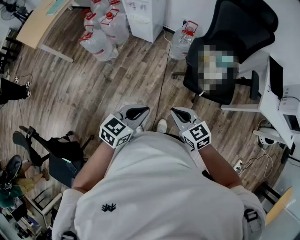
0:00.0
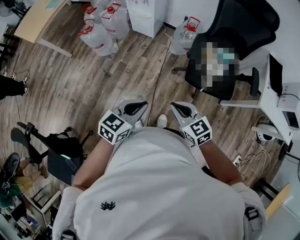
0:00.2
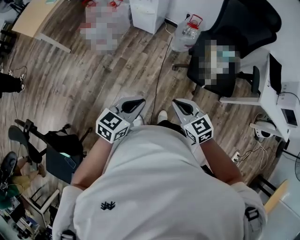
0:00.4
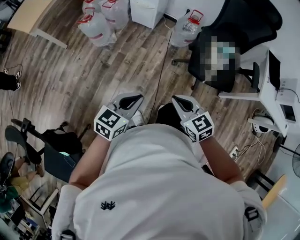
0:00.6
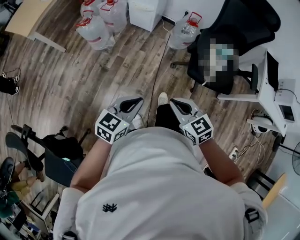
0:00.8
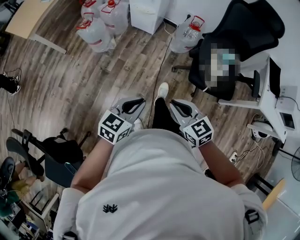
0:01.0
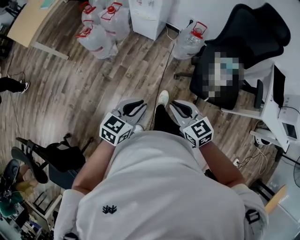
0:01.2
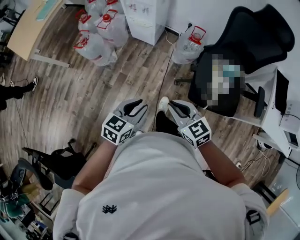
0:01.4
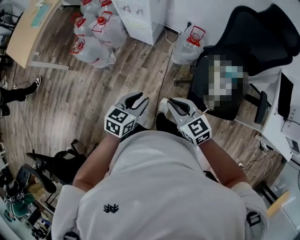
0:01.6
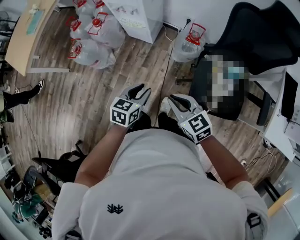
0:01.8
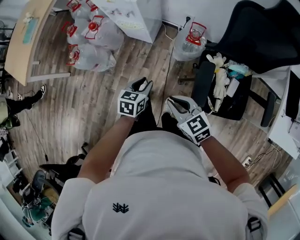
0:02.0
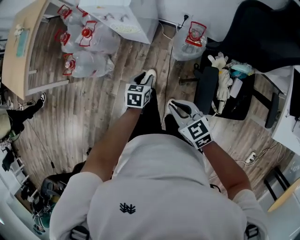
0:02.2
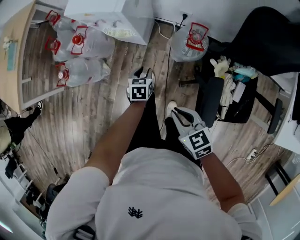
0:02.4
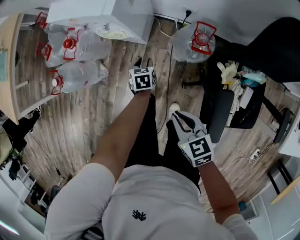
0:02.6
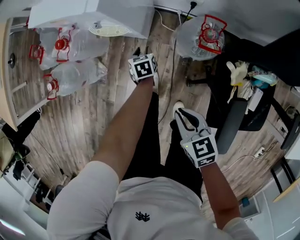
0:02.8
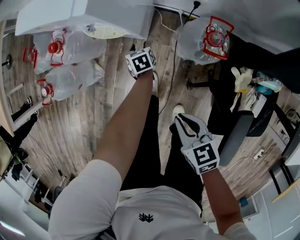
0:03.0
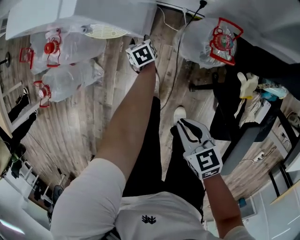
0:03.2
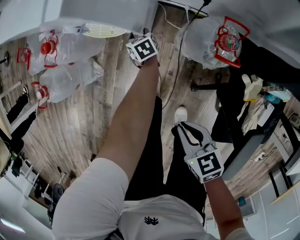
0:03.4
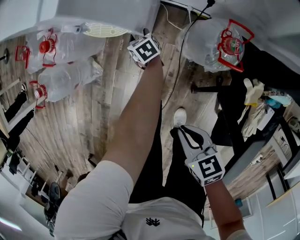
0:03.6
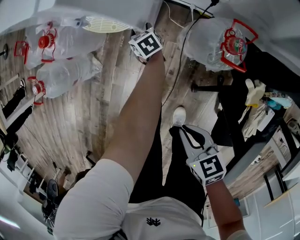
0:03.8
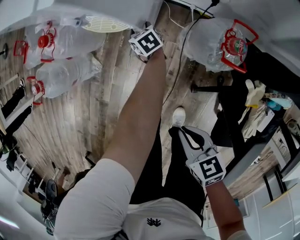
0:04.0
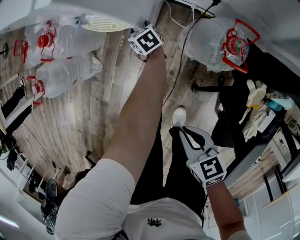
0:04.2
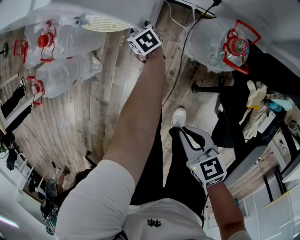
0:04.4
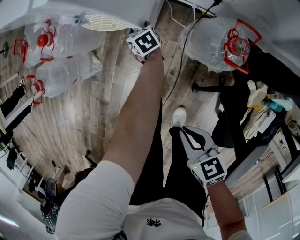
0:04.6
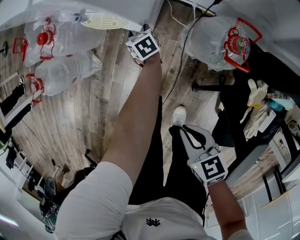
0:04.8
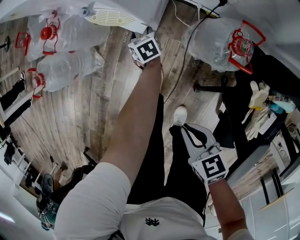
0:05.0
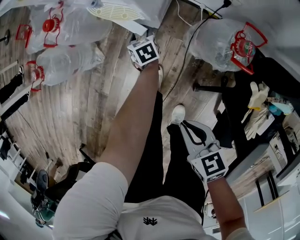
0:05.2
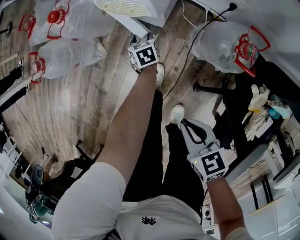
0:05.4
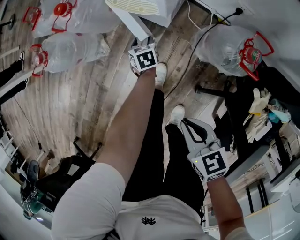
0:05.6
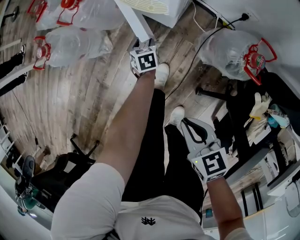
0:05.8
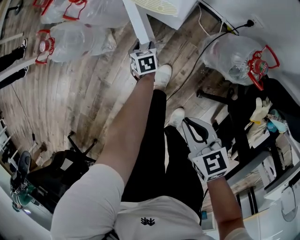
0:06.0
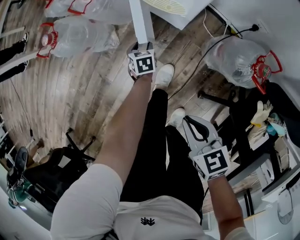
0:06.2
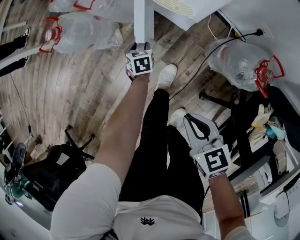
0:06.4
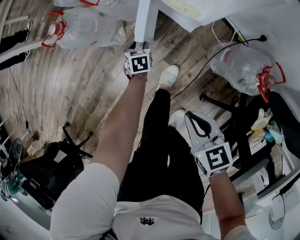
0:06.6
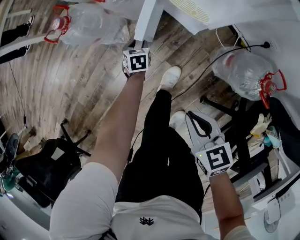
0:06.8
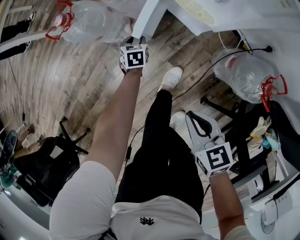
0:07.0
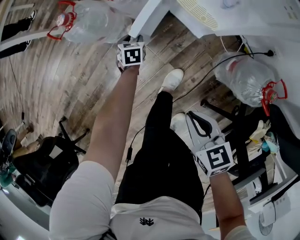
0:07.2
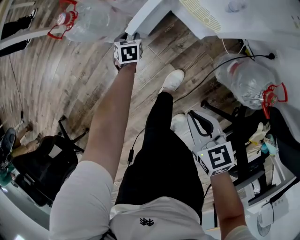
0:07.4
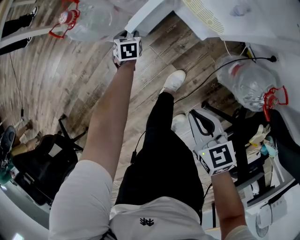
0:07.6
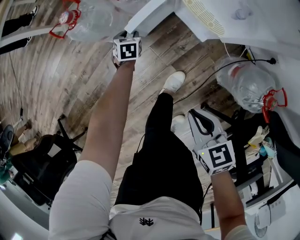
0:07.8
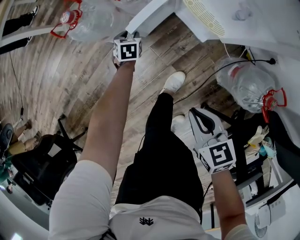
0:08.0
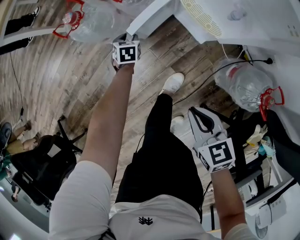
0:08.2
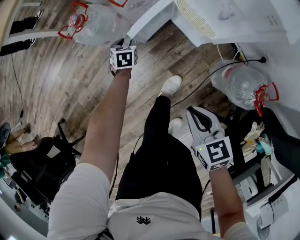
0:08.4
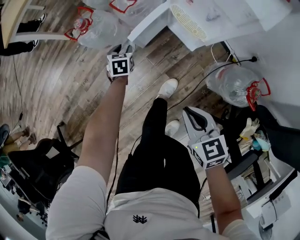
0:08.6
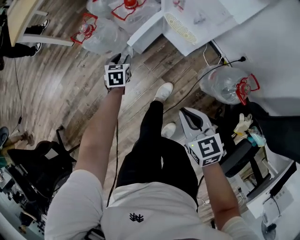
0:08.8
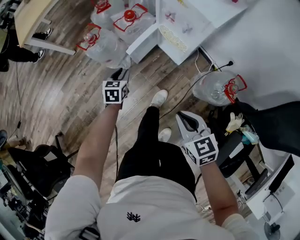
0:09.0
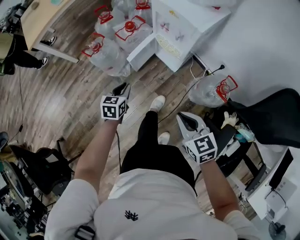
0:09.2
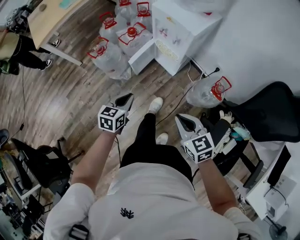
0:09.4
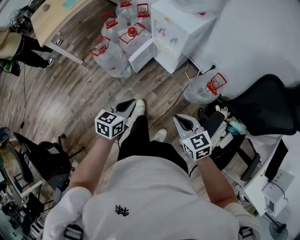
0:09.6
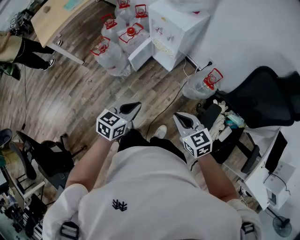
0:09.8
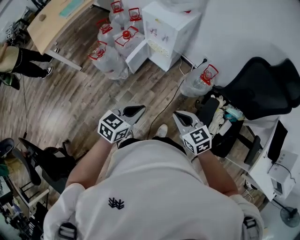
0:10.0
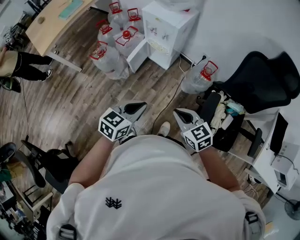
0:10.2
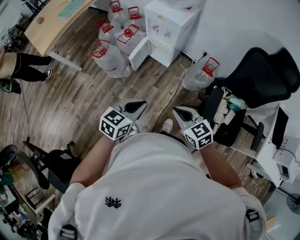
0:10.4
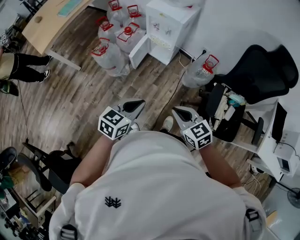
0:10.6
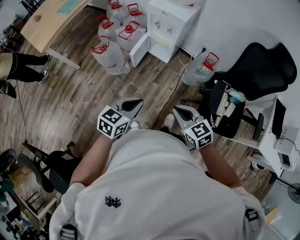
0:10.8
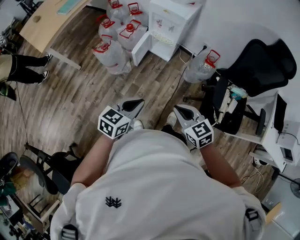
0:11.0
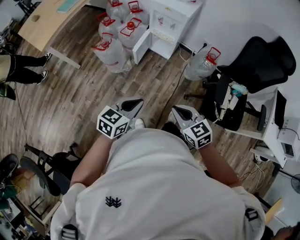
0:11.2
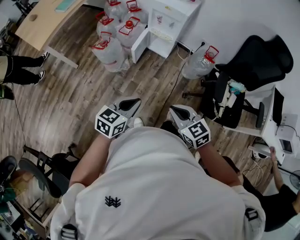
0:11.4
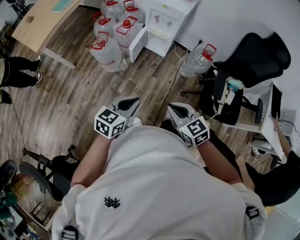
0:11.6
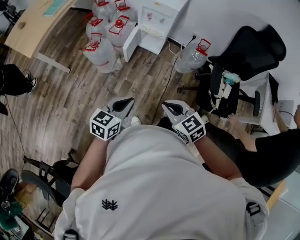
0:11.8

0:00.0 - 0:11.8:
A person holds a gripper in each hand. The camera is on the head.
0:00.0 - 0:01.4: The two grippers go roughly 20 cm forward and to the left.
0:01.4 - 0:03.0: The left gripper shifts about 70 cm forward and downward, changes its angle by some 40 degrees, and opens up. The right gripper goes approximately 40 cm forward and downward, and swivels some 30 degrees.
0:03.0 - 0:04.4: The right gripper moves downward, about 5 cm; the left gripper goes about 10 cm forward and downward.
0:04.4 - 0:06.0: The left gripper moves to the left, some 20 cm. Meanwhile the right gripper ends up approximately 5 cm from where it was.
0:06.0 - 0:07.4: The left gripper shifts about 20 cm to the left and forward; the right gripper heads forward, covering some 10 cm.
0:07.4 - 0:08.8: The left gripper travels upward by approximately 15 cm. The right gripper moves upward, some 10 cm.
0:08.8 - 0:10.4: The left gripper goes approximately 40 cm upward, rotates approximately 50 degrees, and closes up. The right gripper changes place by some 30 cm.
0:10.4 - 0:11.8: The grippers both shift to the left and backward by about 20 cm.

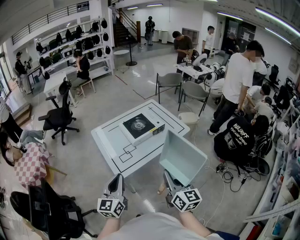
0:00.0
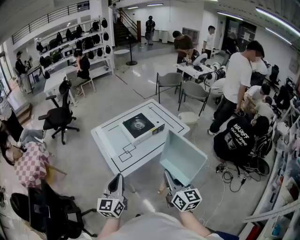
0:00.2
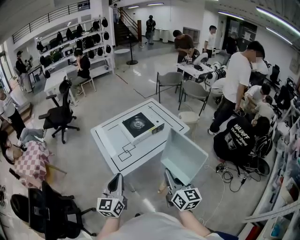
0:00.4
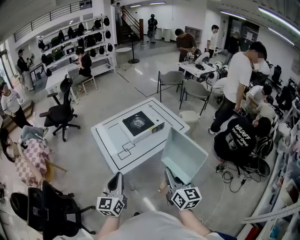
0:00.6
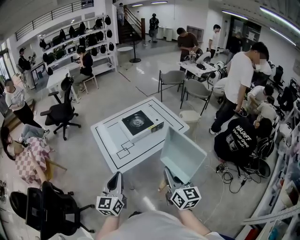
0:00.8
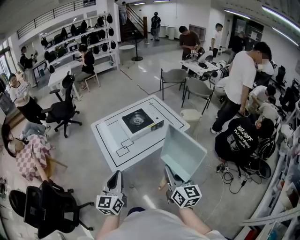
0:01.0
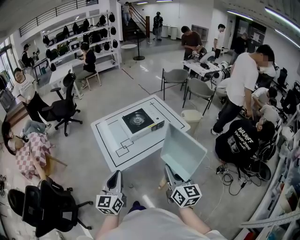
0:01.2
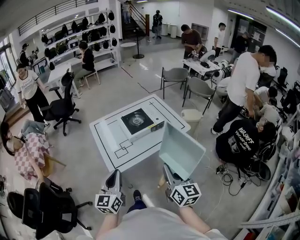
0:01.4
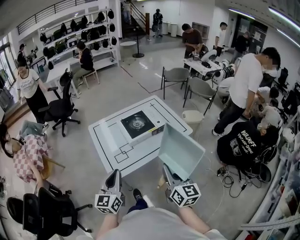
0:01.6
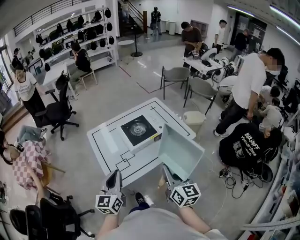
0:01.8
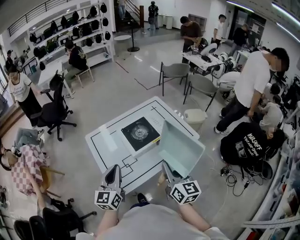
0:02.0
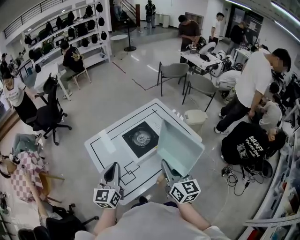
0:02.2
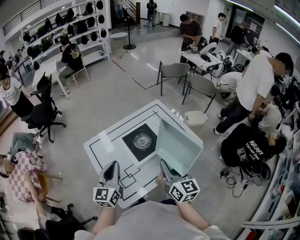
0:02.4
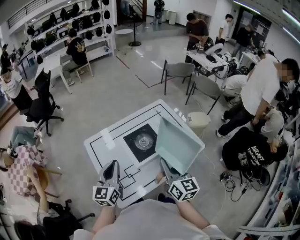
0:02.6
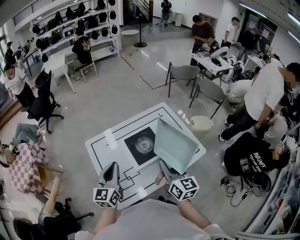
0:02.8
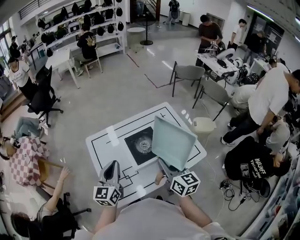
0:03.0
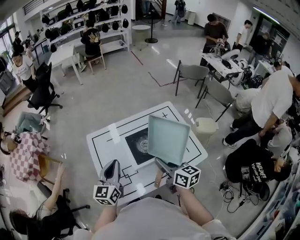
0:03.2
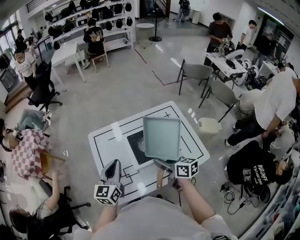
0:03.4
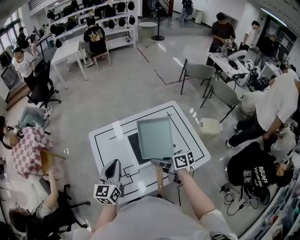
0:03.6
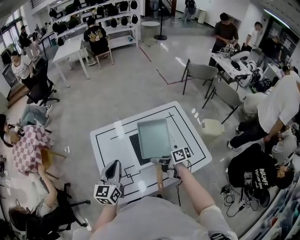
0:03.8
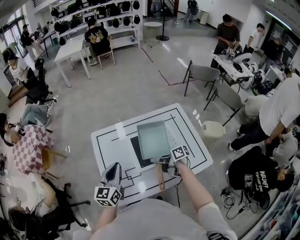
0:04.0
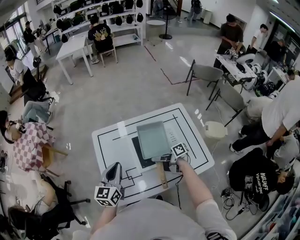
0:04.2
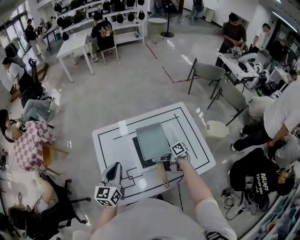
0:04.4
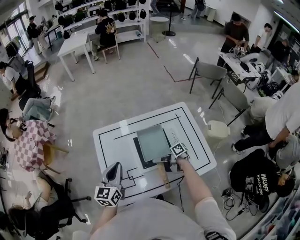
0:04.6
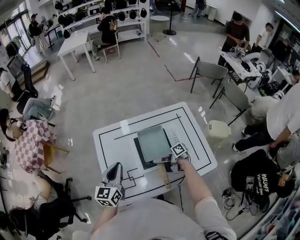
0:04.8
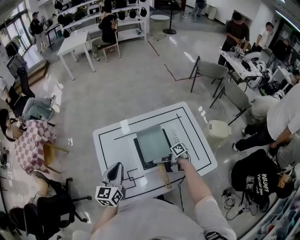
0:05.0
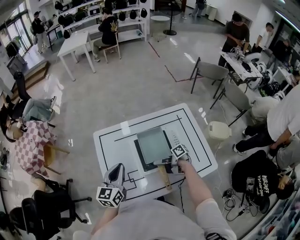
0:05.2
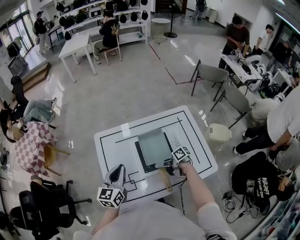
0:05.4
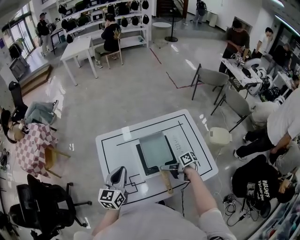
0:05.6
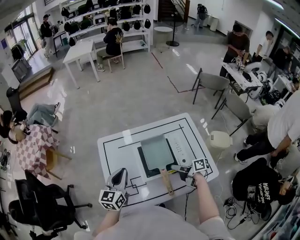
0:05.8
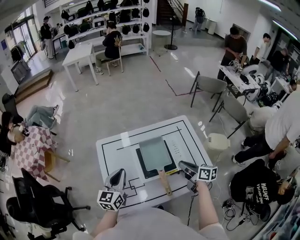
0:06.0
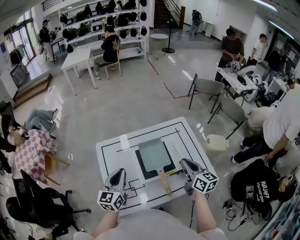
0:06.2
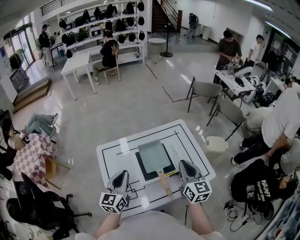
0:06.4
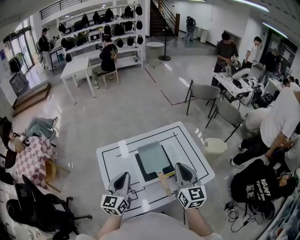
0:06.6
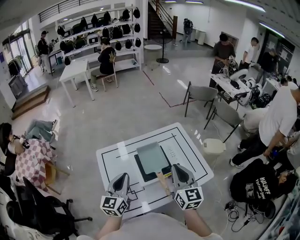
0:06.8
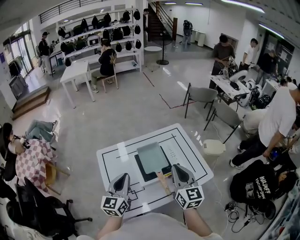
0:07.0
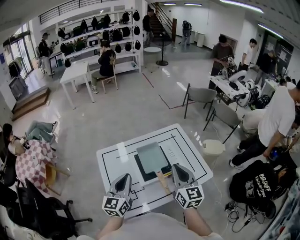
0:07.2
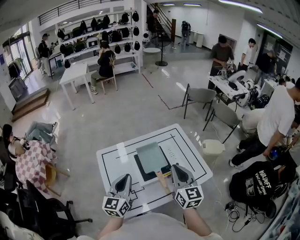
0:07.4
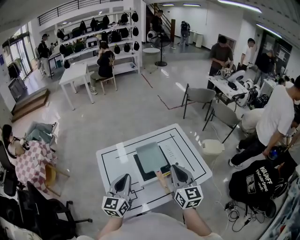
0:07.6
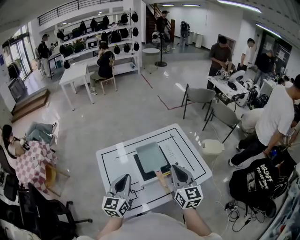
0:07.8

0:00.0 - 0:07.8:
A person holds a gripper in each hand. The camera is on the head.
0:00.0 - 0:01.6: The two grippers go approximately 10 cm forward.
0:01.6 - 0:03.2: Both grippers travel together forward, some 30 cm. The right gripper changes its angle by roughly 30 degrees.
0:03.2 - 0:04.6: The right gripper heads downward, covering some 20 cm, and changes its angle by approximately 70 degrees.
0:04.6 - 0:06.2: The right gripper goes approximately 20 cm upward, rotates approximately 80 degrees, and closes up.
0:06.2 - 0:07.8: The right gripper heads backward and upward, covering about 10 cm, and changes its angle by about 20 degrees; the left gripper heads backward, covering some 5 cm.

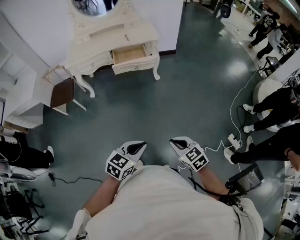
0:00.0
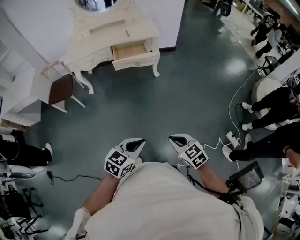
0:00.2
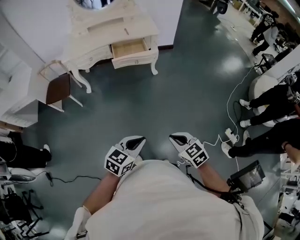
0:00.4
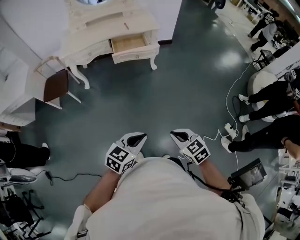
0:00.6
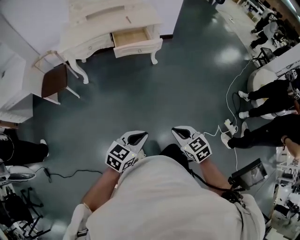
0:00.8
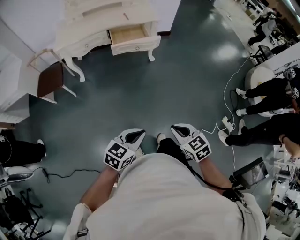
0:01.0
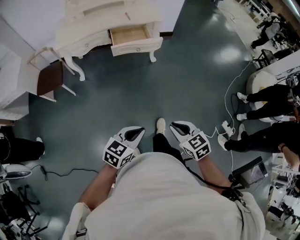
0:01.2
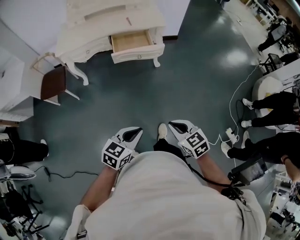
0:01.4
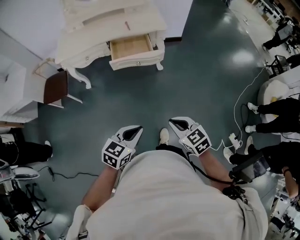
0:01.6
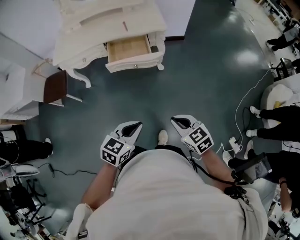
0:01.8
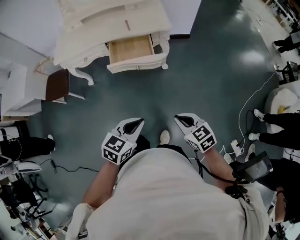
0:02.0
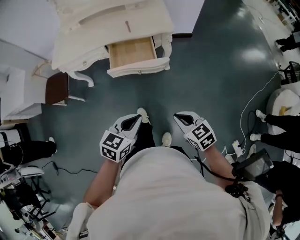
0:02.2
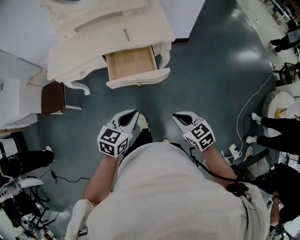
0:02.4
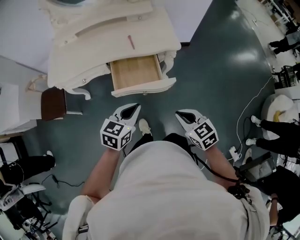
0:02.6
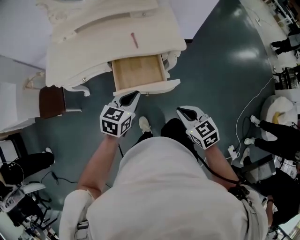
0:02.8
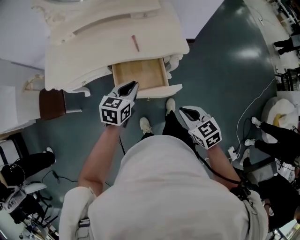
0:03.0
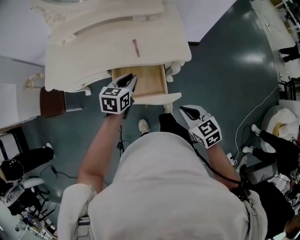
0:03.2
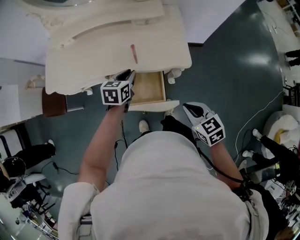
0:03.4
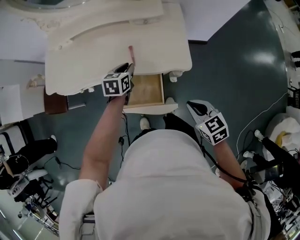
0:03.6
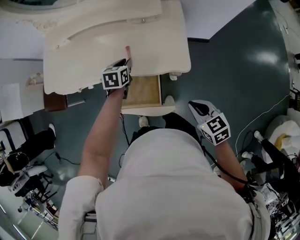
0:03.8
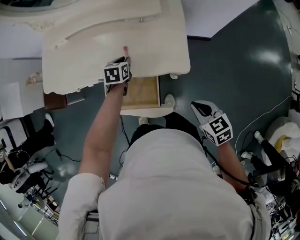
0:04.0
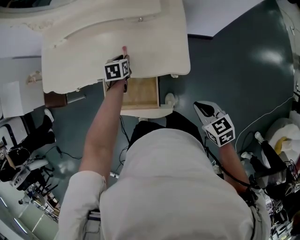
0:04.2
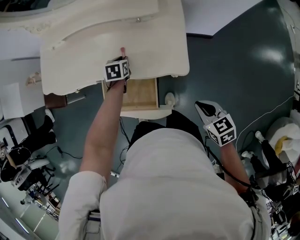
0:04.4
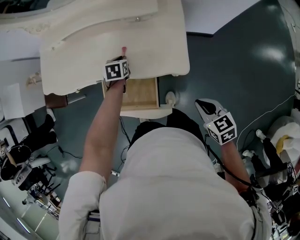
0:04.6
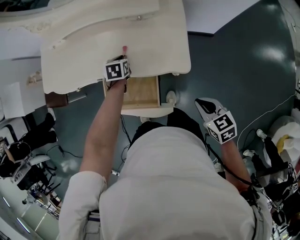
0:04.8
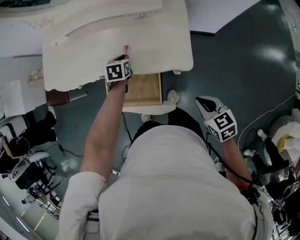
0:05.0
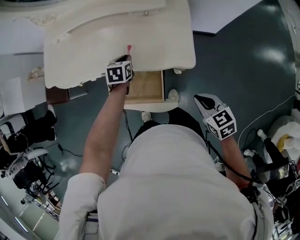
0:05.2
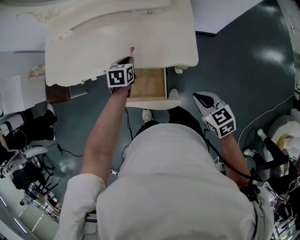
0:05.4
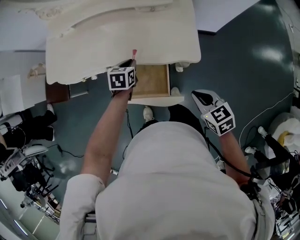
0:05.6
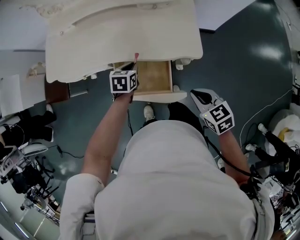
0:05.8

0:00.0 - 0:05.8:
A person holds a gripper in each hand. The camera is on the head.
0:00.0 - 0:01.4: Both grippers move forward and to the left, about 15 cm.
0:01.4 - 0:02.8: The pair of grippers is taken forward, some 50 cm.
0:02.8 - 0:04.4: The left gripper ends up roughly 40 cm from where it was, and rotates roughly 40 degrees. Meanwhile the right gripper changes place by approximately 35 cm.
0:04.4 - 0:05.8: The left gripper is displaced backward and to the left by approximately 15 cm. Meanwhile the right gripper travels to the left by about 15 cm.
